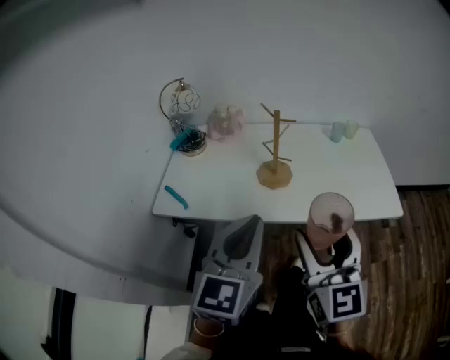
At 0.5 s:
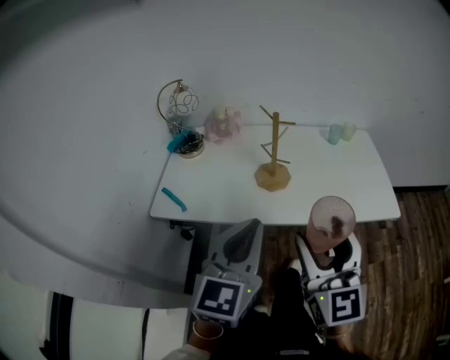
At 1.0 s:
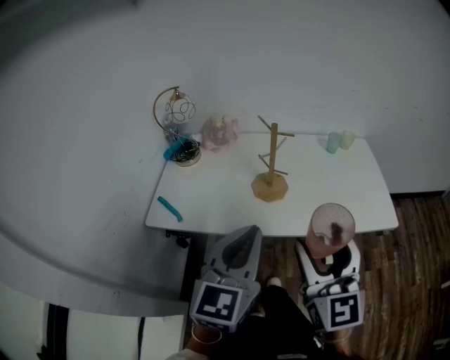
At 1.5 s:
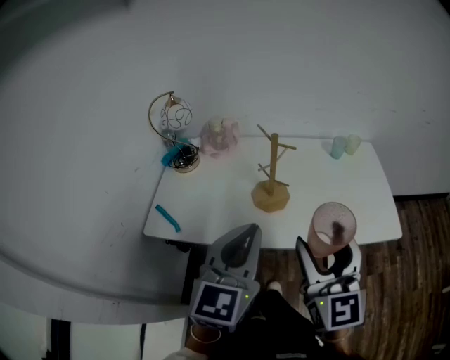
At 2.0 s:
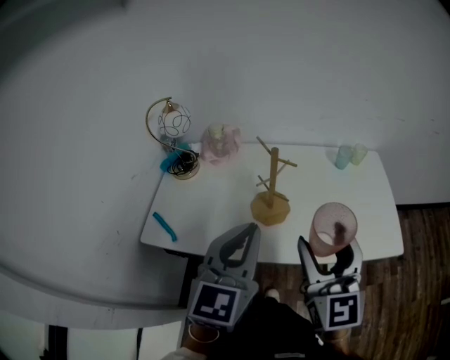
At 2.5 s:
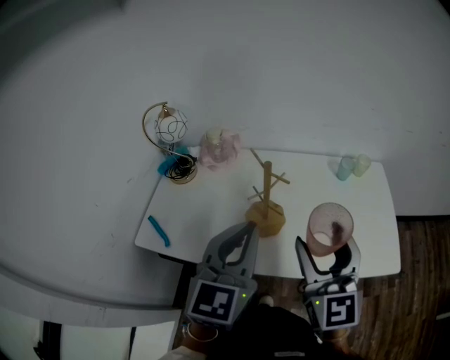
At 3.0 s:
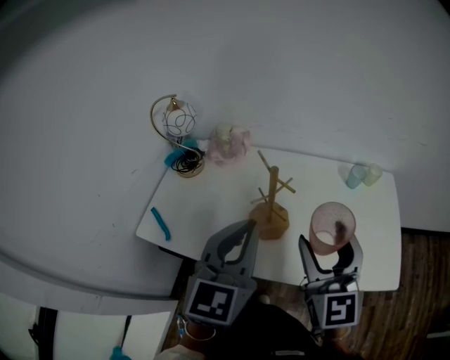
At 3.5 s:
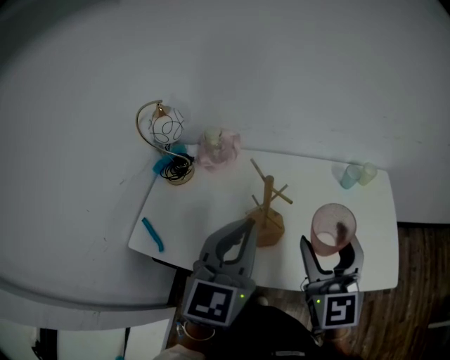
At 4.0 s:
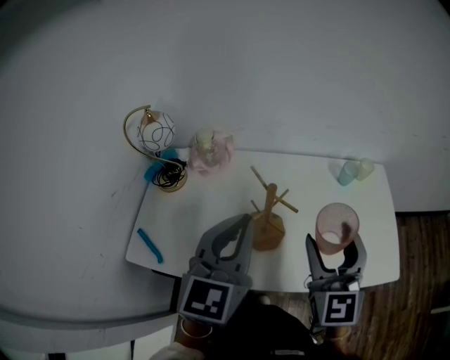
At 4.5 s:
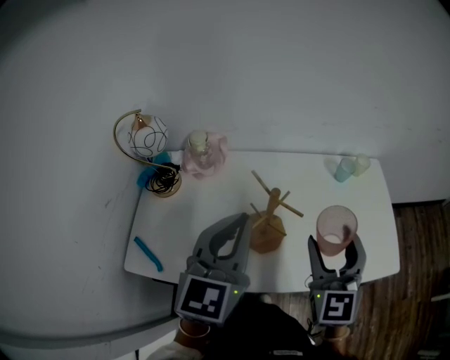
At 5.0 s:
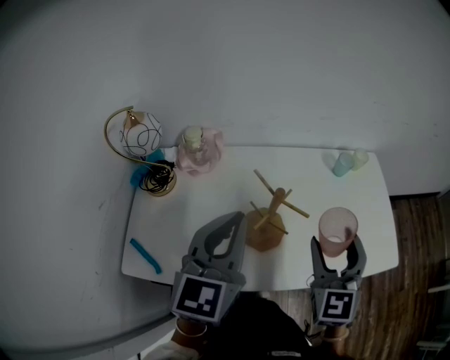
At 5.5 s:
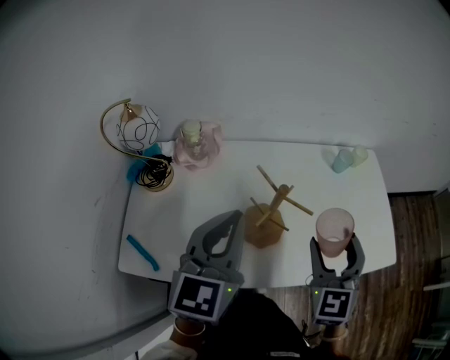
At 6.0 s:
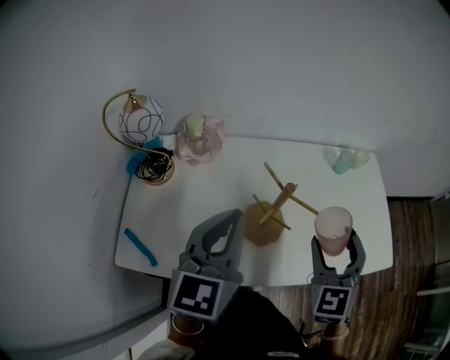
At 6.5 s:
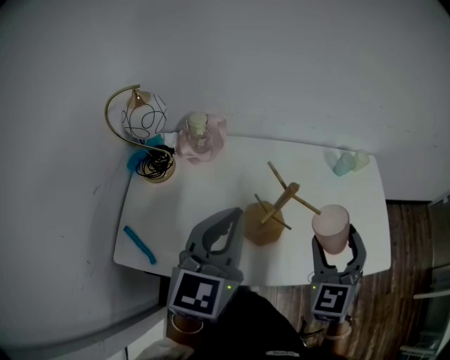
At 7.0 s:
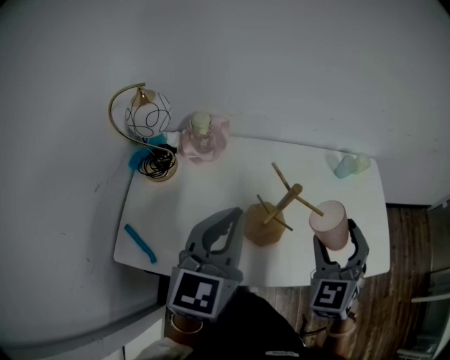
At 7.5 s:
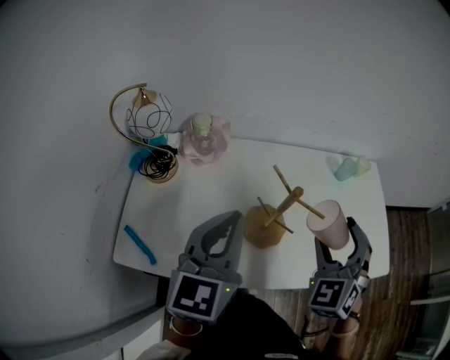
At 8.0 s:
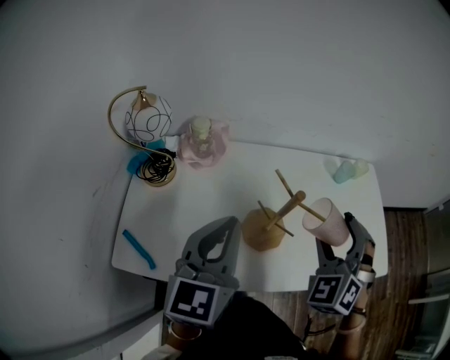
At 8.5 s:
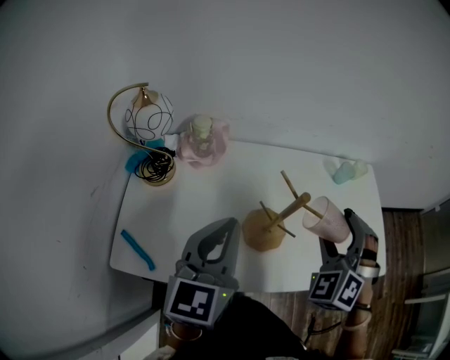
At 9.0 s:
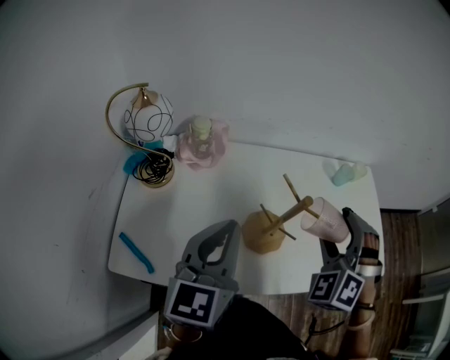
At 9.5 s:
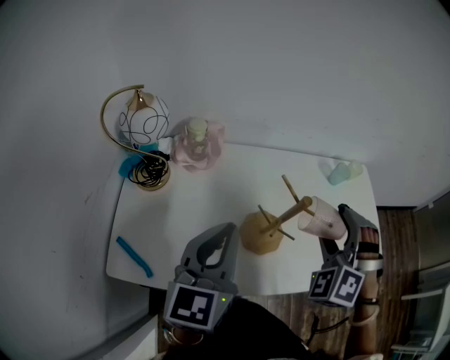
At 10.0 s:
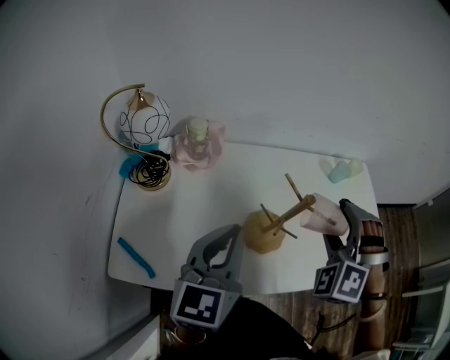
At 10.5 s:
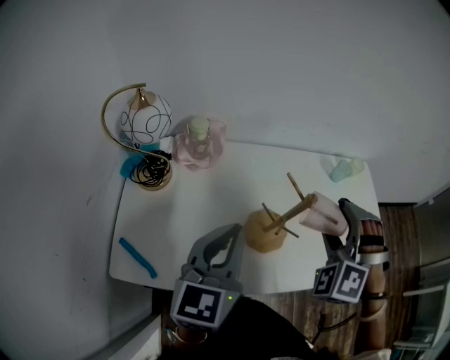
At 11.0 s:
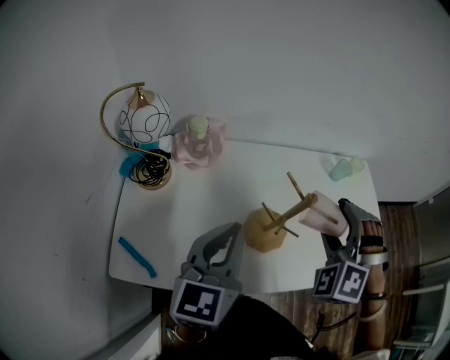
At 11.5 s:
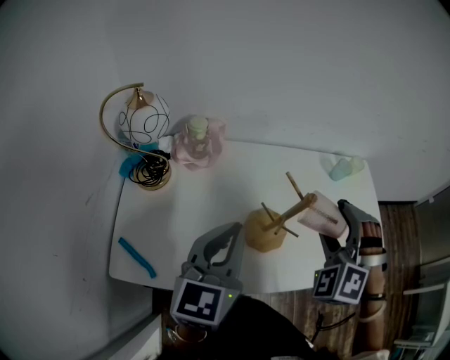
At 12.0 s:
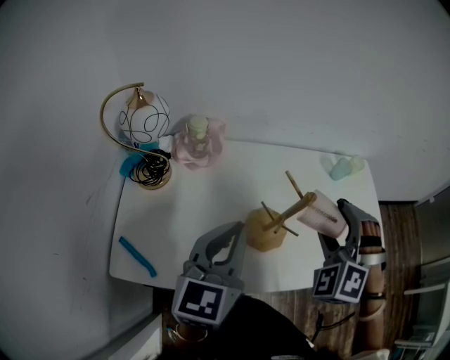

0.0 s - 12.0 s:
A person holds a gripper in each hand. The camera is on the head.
0.0 s - 2.0 s: Both grippers travel together forward, roughly 15 cm.
2.0 s - 4.0 s: Both grippers travel together forward, some 15 cm.
4.0 s - 6.0 s: The right gripper moves downward, approximately 5 cm, and turns by approximately 20 degrees; the left gripper travels to the left by some 5 cm.
6.0 s - 8.0 s: The right gripper swivels about 30 degrees.
8.0 s - 10.0 s: The right gripper turns by about 30 degrees.
10.0 s - 12.0 s: There are only small adjustments of the grippers.

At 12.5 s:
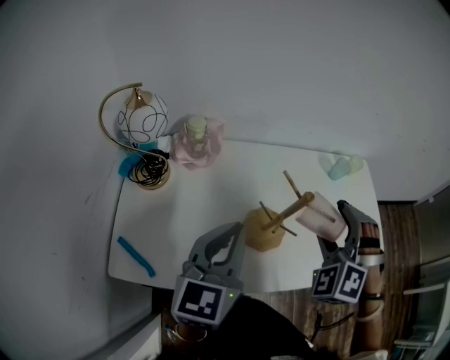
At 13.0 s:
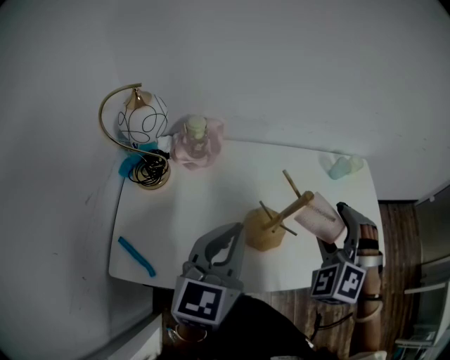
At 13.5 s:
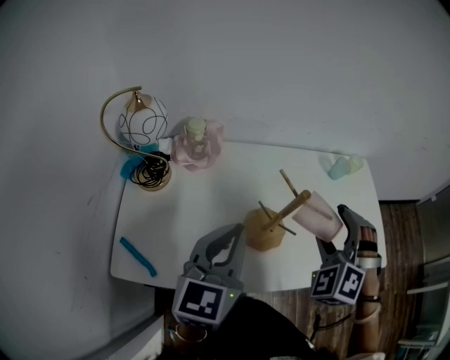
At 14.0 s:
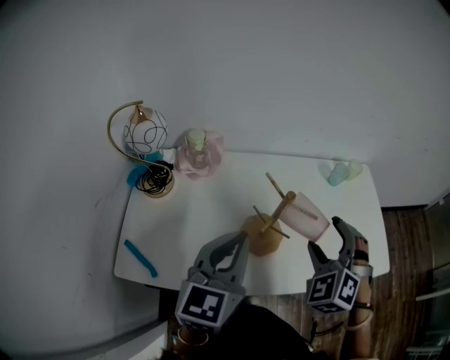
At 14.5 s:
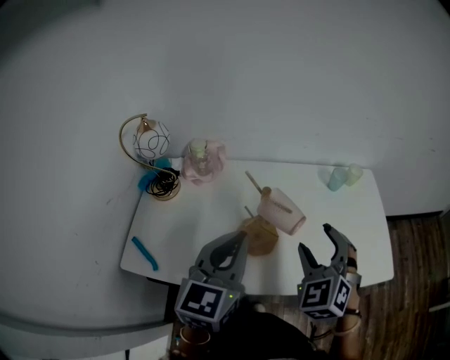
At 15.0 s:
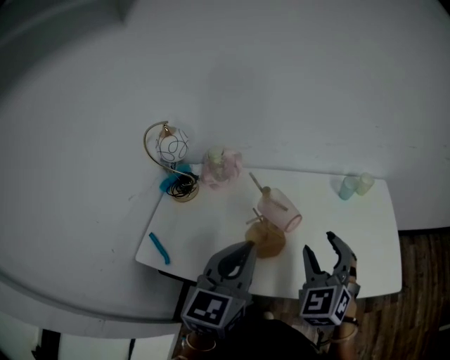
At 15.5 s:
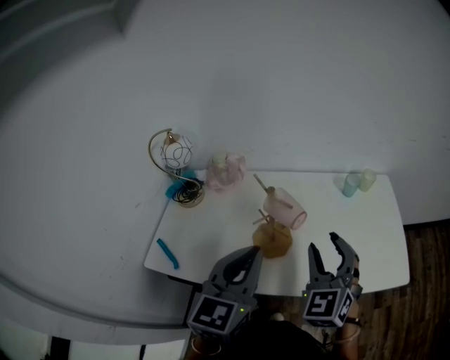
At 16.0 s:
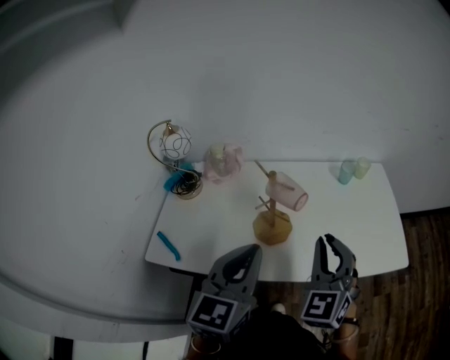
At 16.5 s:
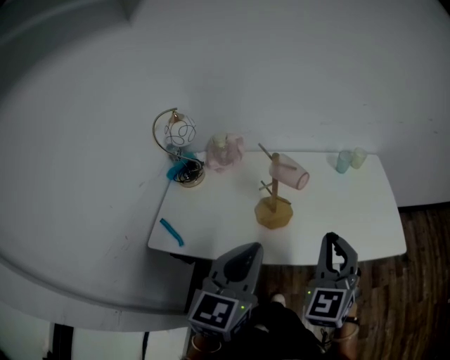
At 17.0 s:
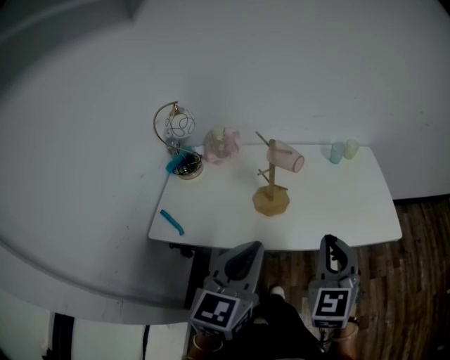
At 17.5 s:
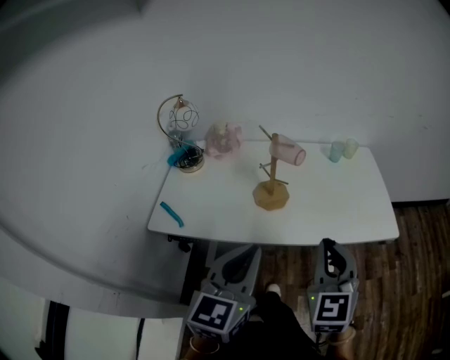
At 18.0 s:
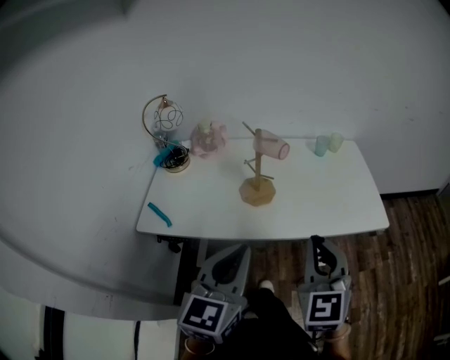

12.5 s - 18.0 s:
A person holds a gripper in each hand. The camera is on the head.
12.5 s - 14.5 s: The left gripper travels to the right by roughly 10 cm; the right gripper travels to the right by some 5 cm, and swivels some 30 degrees.
14.5 s - 16.0 s: The two grippers go approximately 10 cm backward. The right gripper turns by roughly 20 degrees, and closes up.
16.0 s - 18.0 s: The grippers both shift backward by some 15 cm.

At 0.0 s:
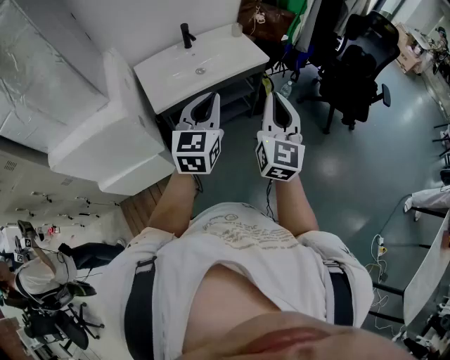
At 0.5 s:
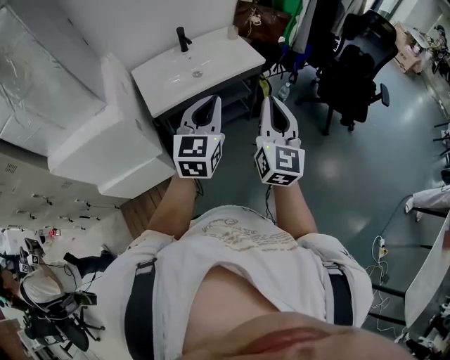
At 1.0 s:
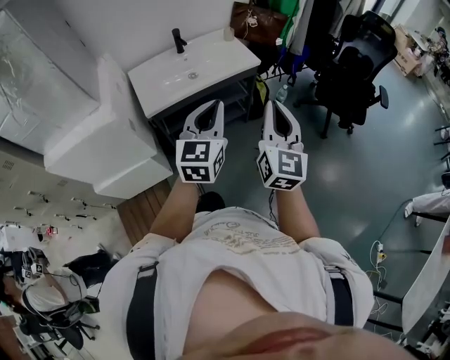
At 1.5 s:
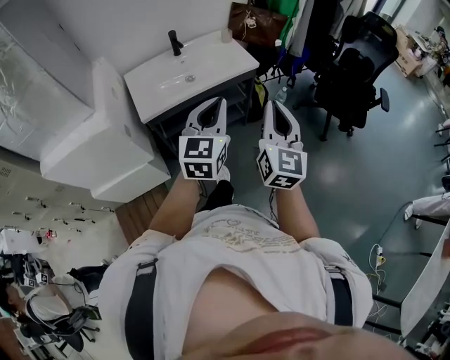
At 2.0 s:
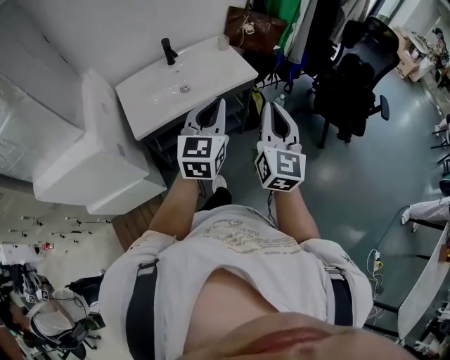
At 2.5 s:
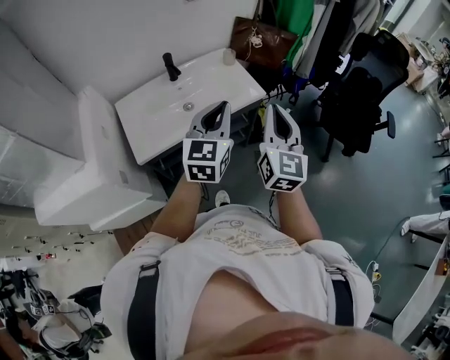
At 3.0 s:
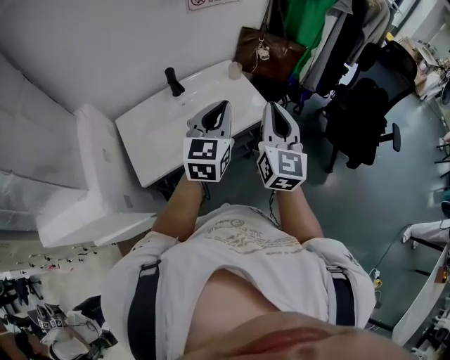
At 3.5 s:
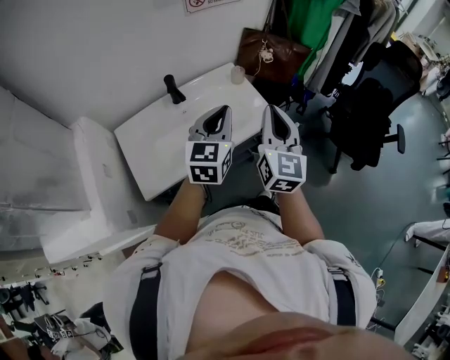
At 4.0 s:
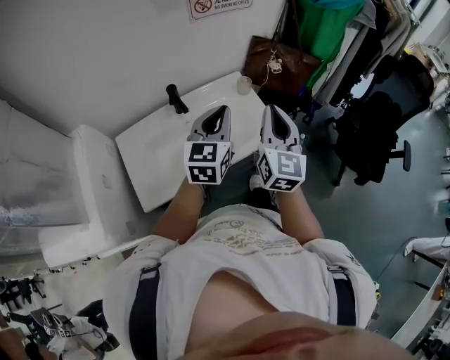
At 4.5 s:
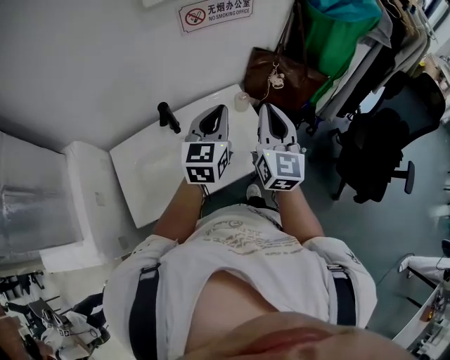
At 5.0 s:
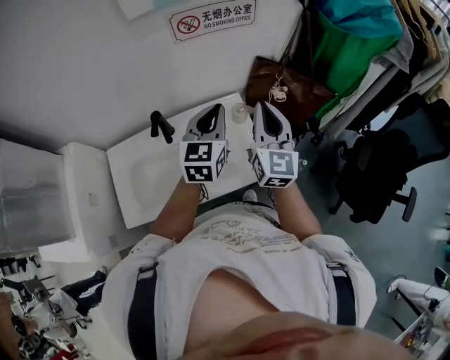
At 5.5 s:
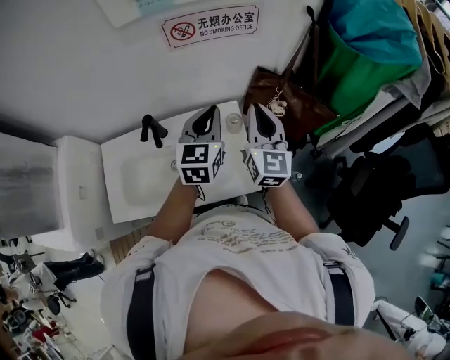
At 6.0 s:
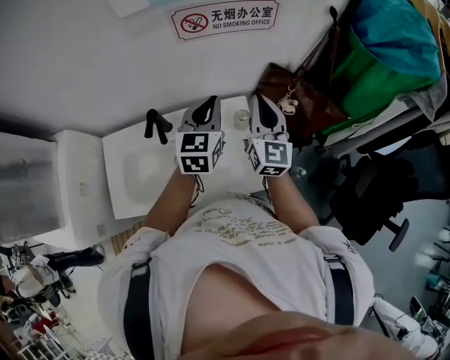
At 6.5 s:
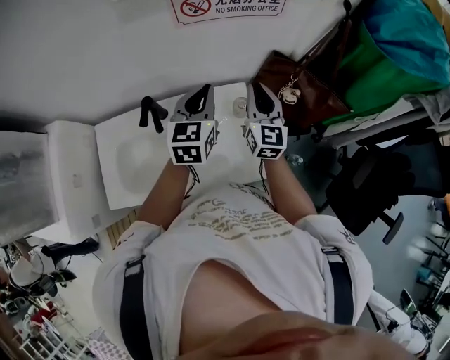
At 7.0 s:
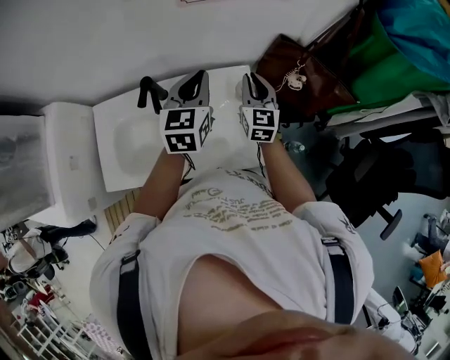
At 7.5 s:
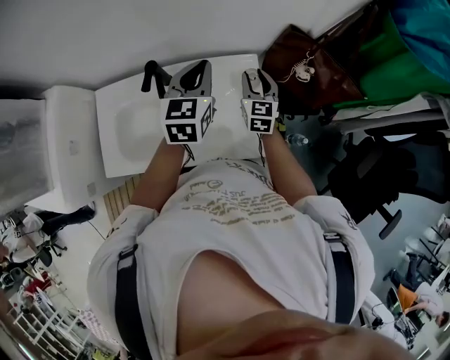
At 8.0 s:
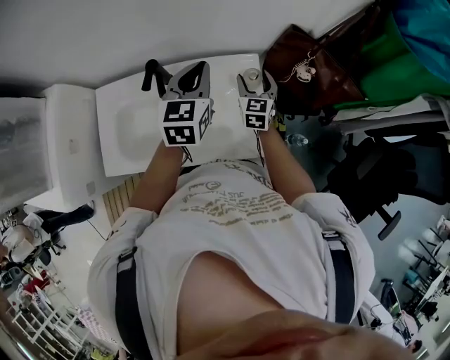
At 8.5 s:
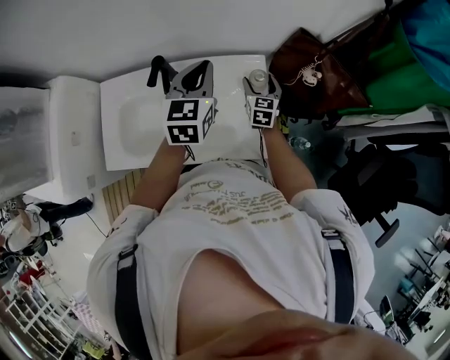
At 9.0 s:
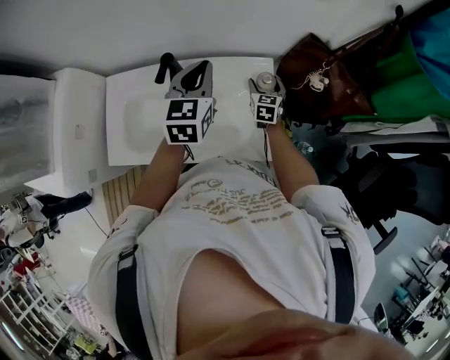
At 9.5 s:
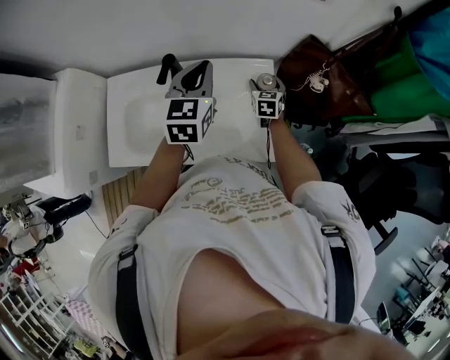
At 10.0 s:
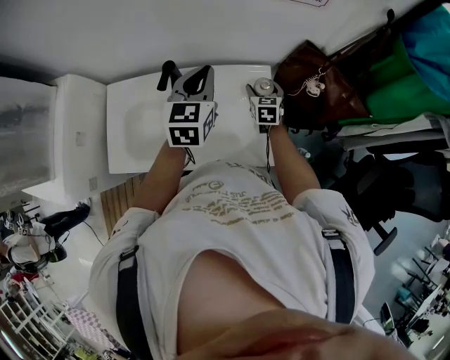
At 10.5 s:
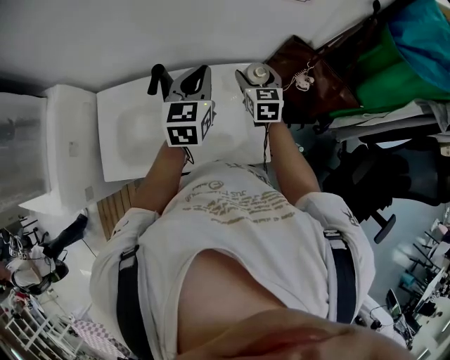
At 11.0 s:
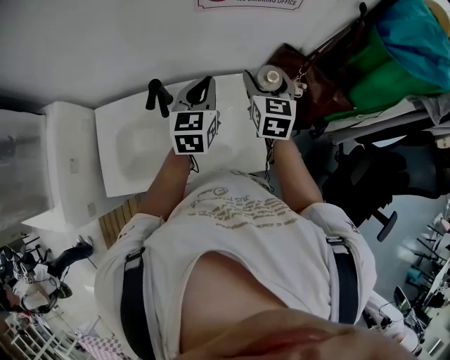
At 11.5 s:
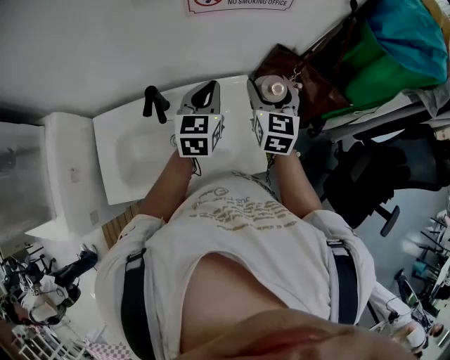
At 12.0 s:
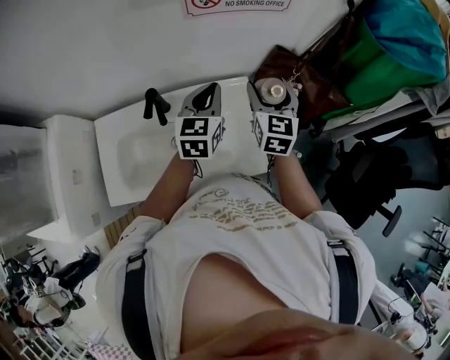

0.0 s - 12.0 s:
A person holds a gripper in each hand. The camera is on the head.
0.0 s - 2.0 s: The left gripper shifts approximately 15 cm forward and to the right, while the right gripper travels forward by some 10 cm.
2.0 s - 4.0 s: The two grippers go about 35 cm forward.
4.0 s - 6.0 s: Both grippers travel together forward, some 25 cm. The left gripper changes its angle by about 20 degrees. The right gripper swivels about 20 degrees.
6.0 s - 8.0 s: The left gripper shifts approximately 5 cm to the left. The right gripper shifts roughly 20 cm downward, turns by approximately 30 degrees, and opens up.
8.0 s - 10.0 s: The right gripper moves downward, some 5 cm.
10.0 s - 12.0 s: The left gripper moves to the right, roughly 5 cm. Meanwhile the right gripper is displaced upward by about 25 cm, and turns by some 20 degrees.
